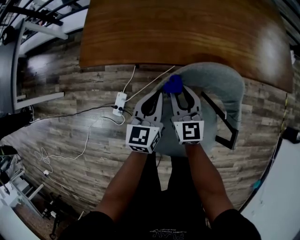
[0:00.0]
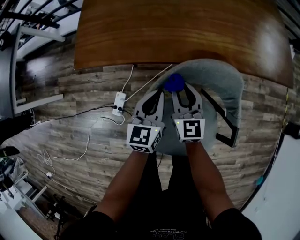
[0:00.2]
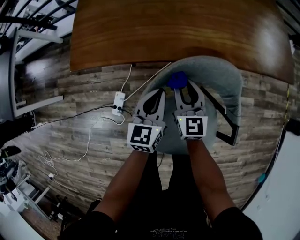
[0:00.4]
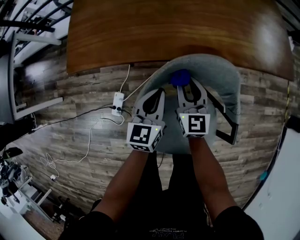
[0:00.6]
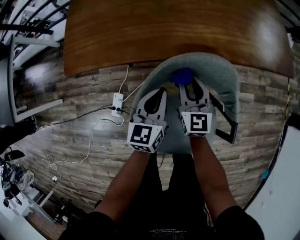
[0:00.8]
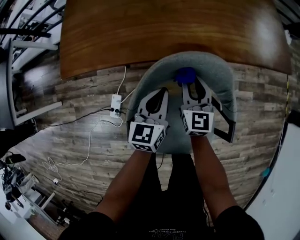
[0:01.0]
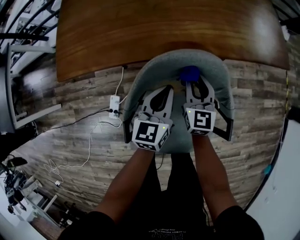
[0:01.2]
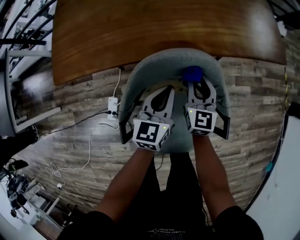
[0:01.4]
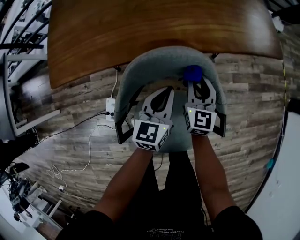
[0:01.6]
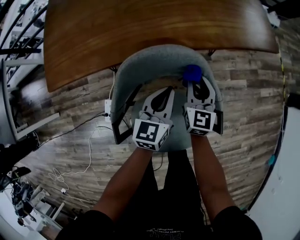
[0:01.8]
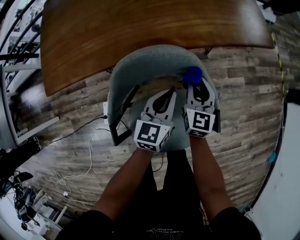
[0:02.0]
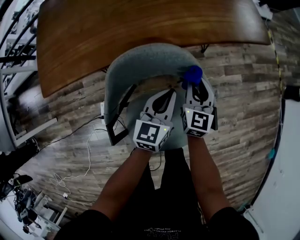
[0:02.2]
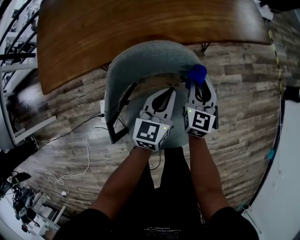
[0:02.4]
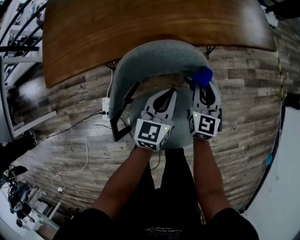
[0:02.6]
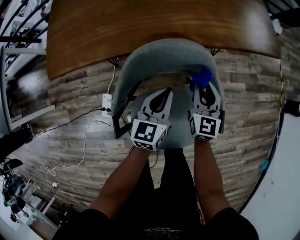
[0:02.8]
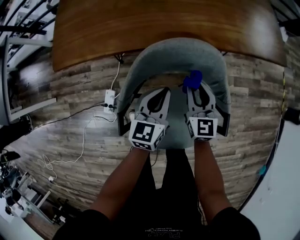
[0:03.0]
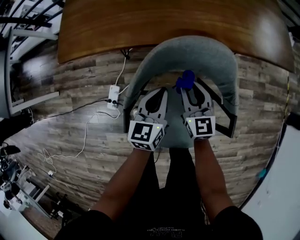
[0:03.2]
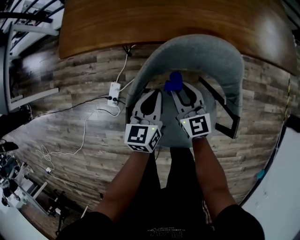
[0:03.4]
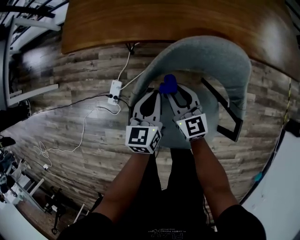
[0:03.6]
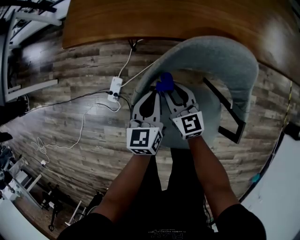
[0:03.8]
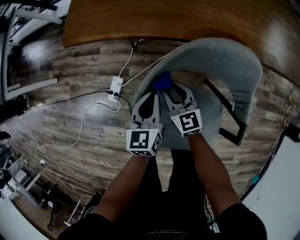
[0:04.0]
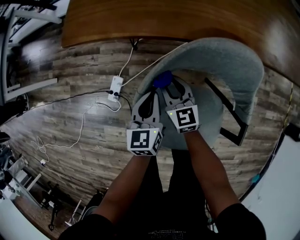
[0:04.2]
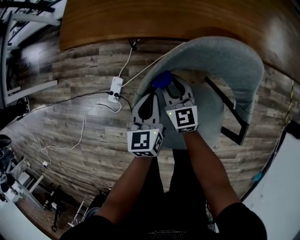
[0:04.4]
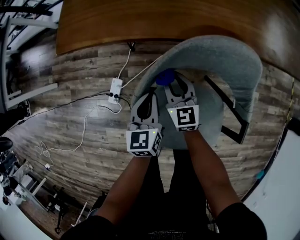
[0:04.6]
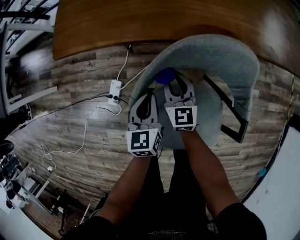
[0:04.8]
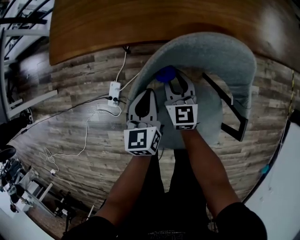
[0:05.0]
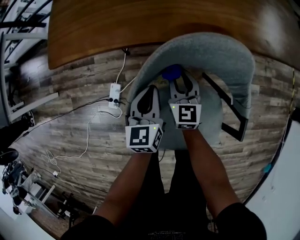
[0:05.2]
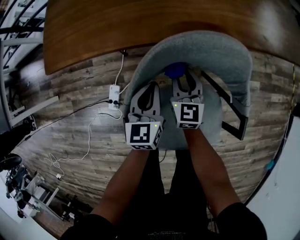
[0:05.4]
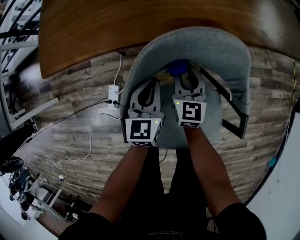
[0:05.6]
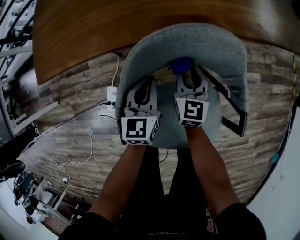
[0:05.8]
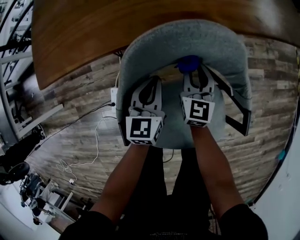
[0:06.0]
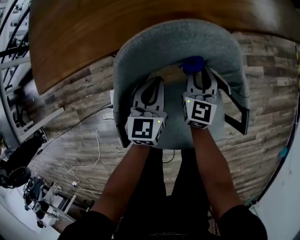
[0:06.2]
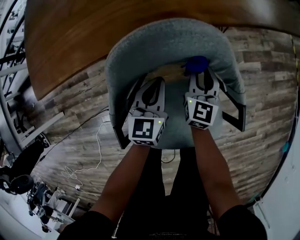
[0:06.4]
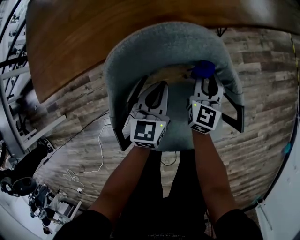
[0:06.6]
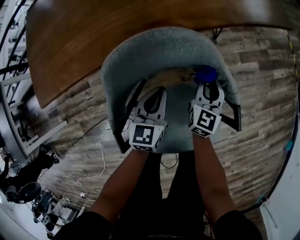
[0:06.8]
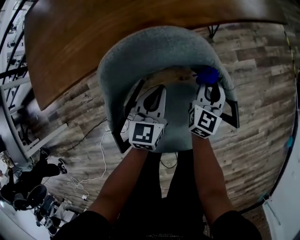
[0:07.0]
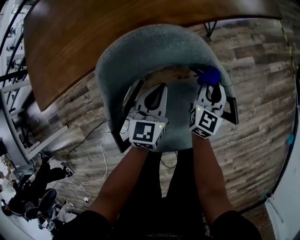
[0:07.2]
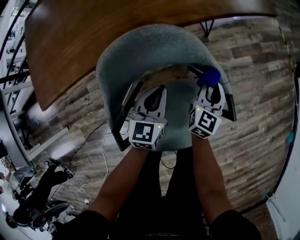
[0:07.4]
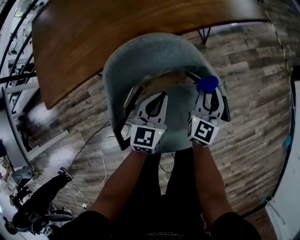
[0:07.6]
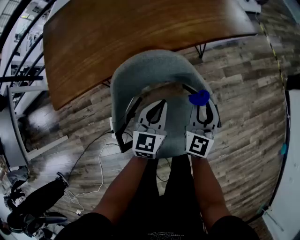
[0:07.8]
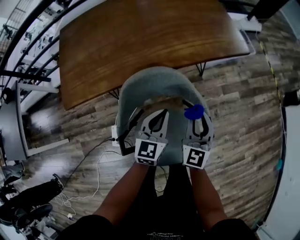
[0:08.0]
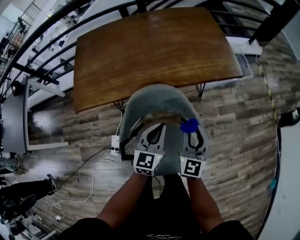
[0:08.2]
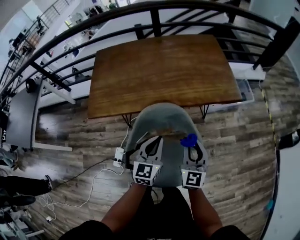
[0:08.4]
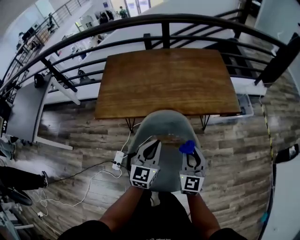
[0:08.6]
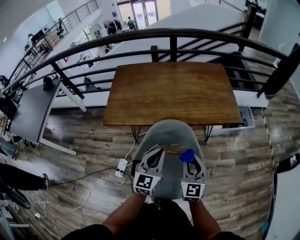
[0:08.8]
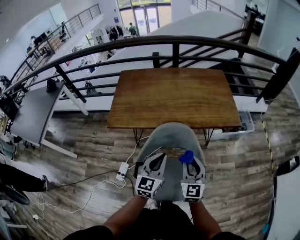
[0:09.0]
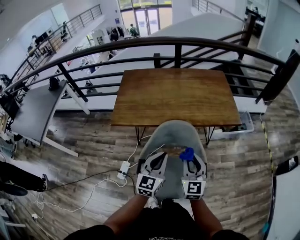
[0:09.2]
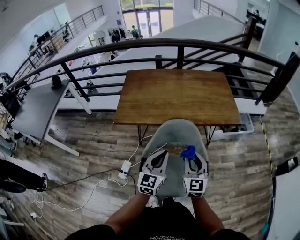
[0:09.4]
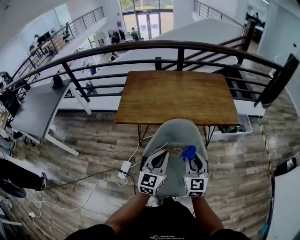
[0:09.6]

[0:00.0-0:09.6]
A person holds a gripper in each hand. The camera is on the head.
0:00.0 to 0:01.6: Both grippers move to the right, about 20 cm. The right gripper changes its angle by roughly 20 degrees.
0:01.6 to 0:03.2: The right gripper moves some 10 cm, and swivels approximately 20 degrees; the left gripper shifts by roughly 10 cm.
0:03.2 to 0:04.8: Both grippers travel together to the left and downward, some 10 cm.
0:04.8 to 0:06.4: The right gripper moves about 20 cm, and swivels some 30 degrees; the left gripper ends up some 15 cm from where it was, and swivels approximately 30 degrees.
0:06.4 to 0:08.0: Both grippers move upward and to the right, roughly 20 cm.
0:08.0 to 0:09.6: The left gripper goes some 30 cm upward and backward, and turns by some 20 degrees, while the right gripper heads upward, backward and to the left, covering approximately 25 cm, and rotates roughly 30 degrees.

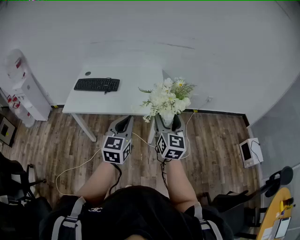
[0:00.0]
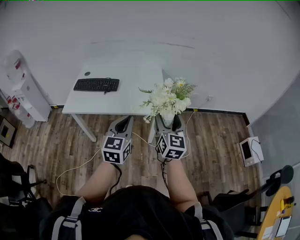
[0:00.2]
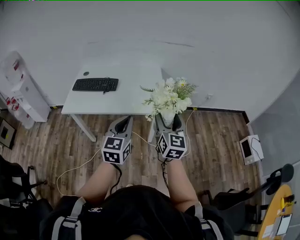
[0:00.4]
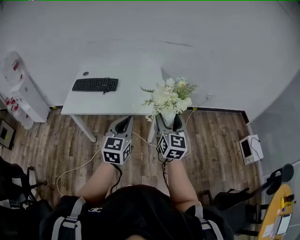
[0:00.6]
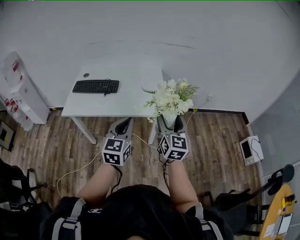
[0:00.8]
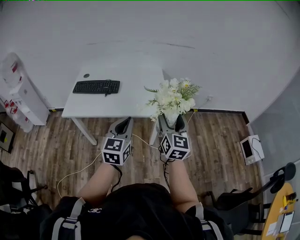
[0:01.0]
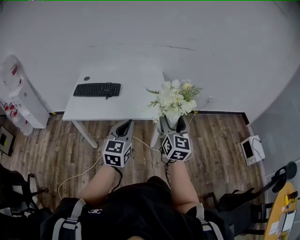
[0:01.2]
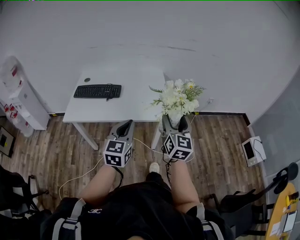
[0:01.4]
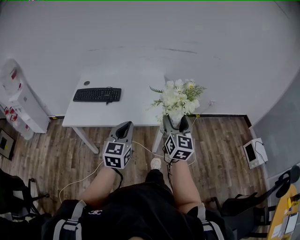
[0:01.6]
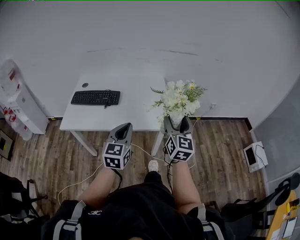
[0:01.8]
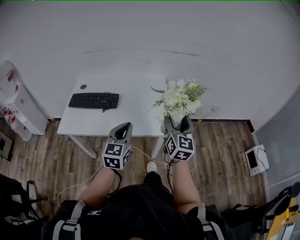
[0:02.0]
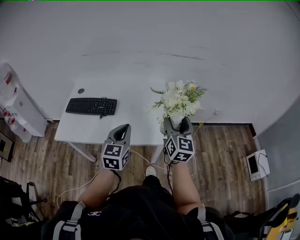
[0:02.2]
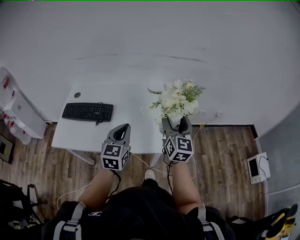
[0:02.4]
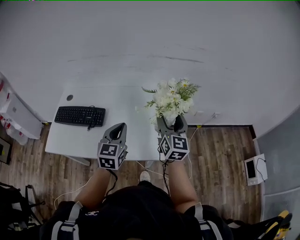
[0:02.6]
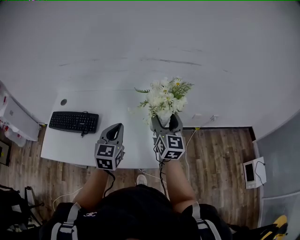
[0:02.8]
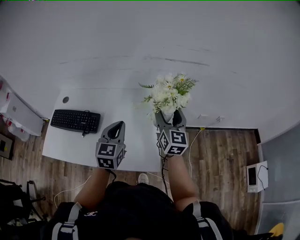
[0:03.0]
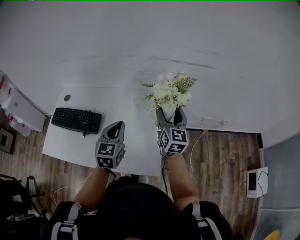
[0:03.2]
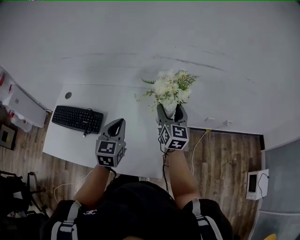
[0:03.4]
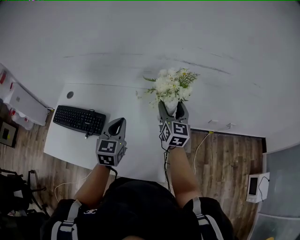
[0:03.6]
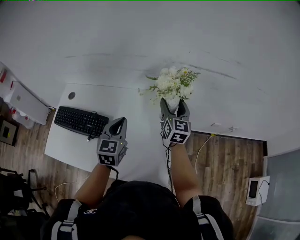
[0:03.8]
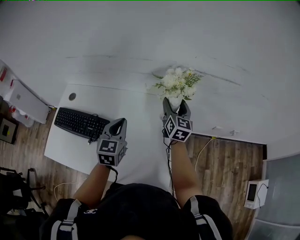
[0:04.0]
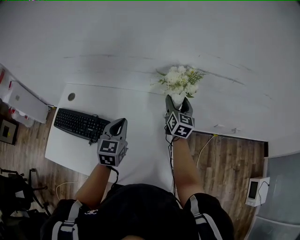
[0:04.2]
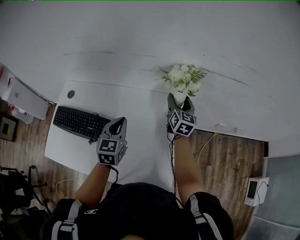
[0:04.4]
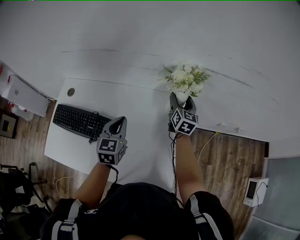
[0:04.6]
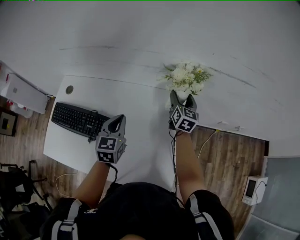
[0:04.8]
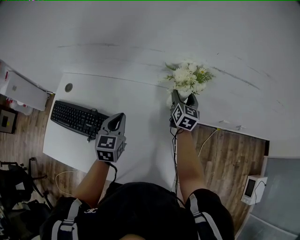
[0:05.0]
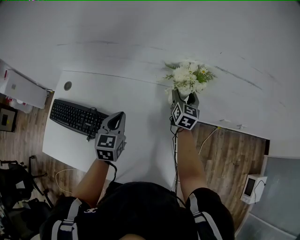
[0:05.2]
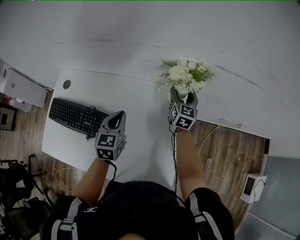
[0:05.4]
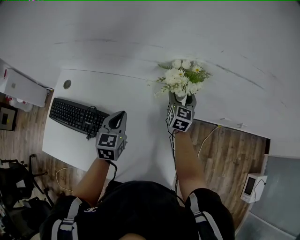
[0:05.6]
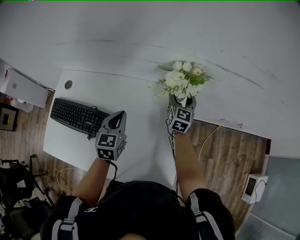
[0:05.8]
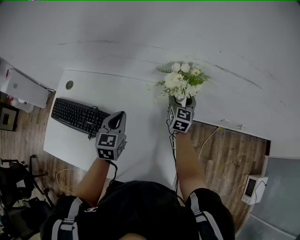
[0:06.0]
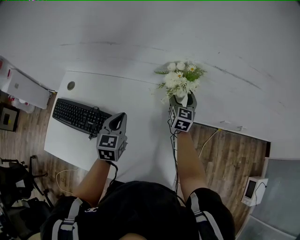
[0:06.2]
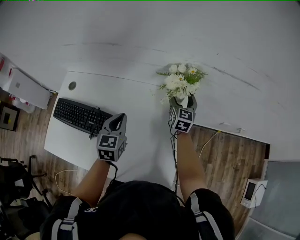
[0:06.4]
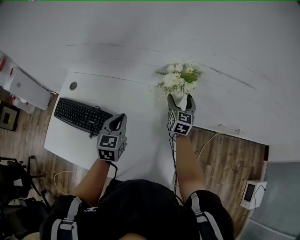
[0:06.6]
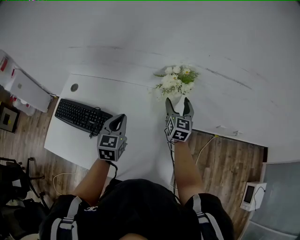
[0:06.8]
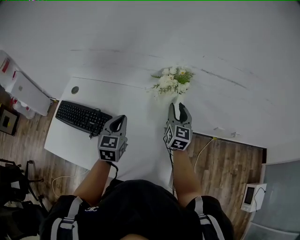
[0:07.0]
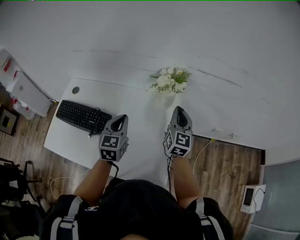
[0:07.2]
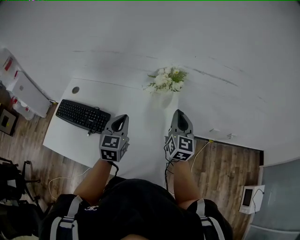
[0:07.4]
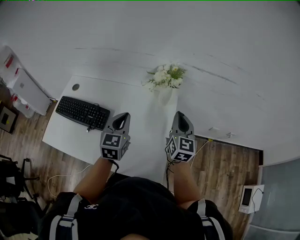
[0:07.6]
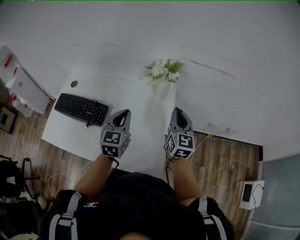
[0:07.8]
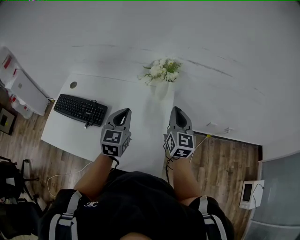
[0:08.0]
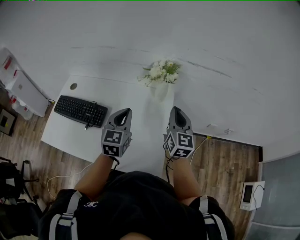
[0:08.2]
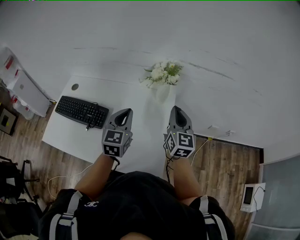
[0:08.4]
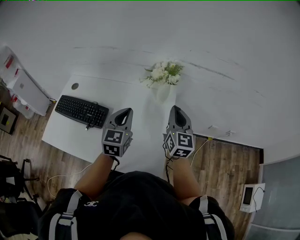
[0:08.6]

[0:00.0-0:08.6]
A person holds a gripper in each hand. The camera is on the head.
0:00.0 to 0:01.4: The left gripper is displaced to the left by approximately 5 cm.
0:01.4 to 0:02.8: Both grippers are carried forward, roughly 40 cm.
0:02.8 to 0:04.4: The left gripper heads forward and to the left, covering approximately 25 cm. Meanwhile the right gripper heads forward and downward, covering about 35 cm.
0:04.4 to 0:05.8: The two grippers go roughly 5 cm downward.
0:05.8 to 0:07.2: The right gripper heads backward and upward, covering about 20 cm, and closes its fingers, while the left gripper goes roughly 10 cm backward and upward.
0:07.2 to 0:08.6: The right gripper is displaced backward by some 5 cm, while the left gripper heads to the right, covering some 5 cm.

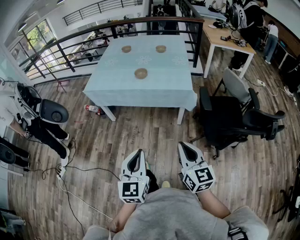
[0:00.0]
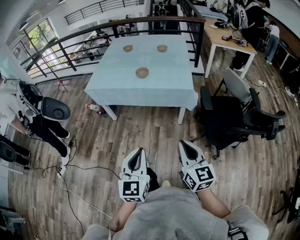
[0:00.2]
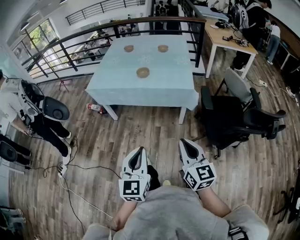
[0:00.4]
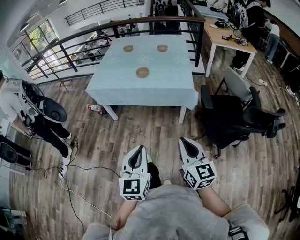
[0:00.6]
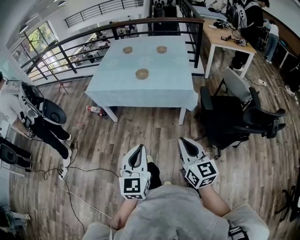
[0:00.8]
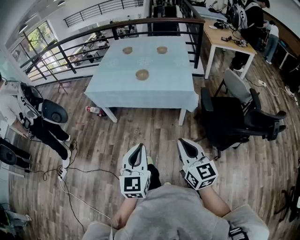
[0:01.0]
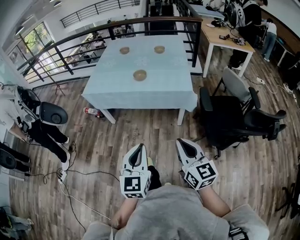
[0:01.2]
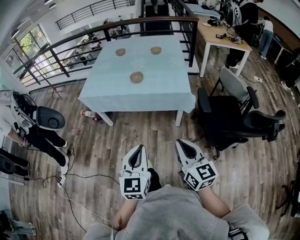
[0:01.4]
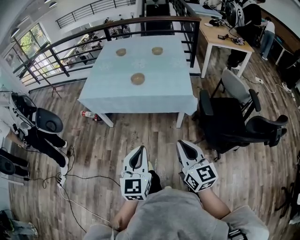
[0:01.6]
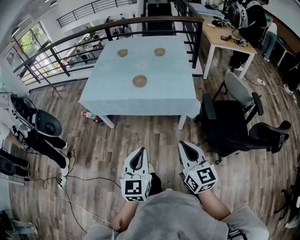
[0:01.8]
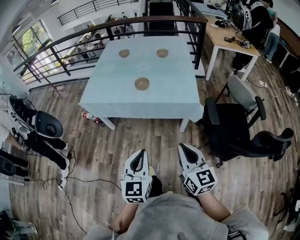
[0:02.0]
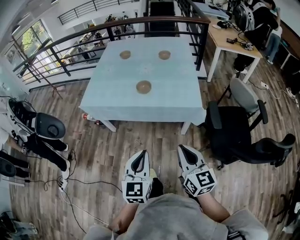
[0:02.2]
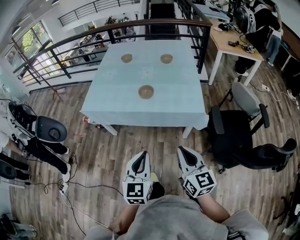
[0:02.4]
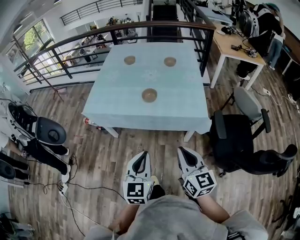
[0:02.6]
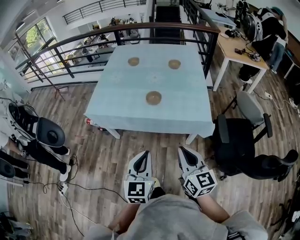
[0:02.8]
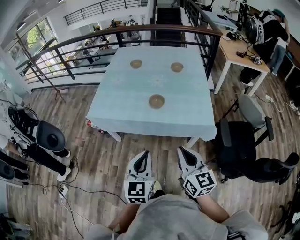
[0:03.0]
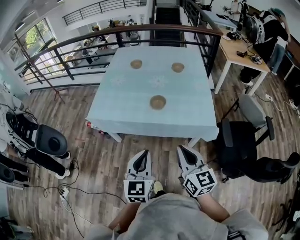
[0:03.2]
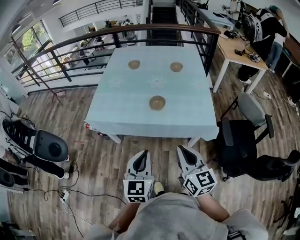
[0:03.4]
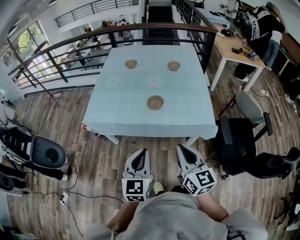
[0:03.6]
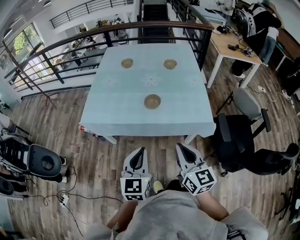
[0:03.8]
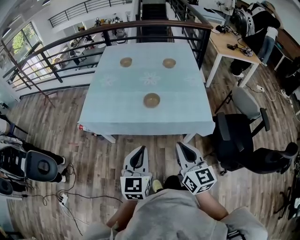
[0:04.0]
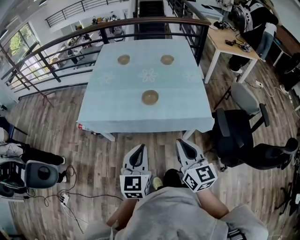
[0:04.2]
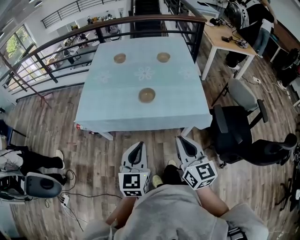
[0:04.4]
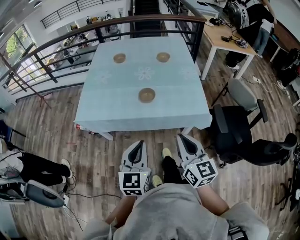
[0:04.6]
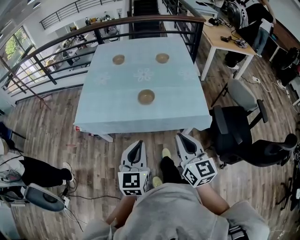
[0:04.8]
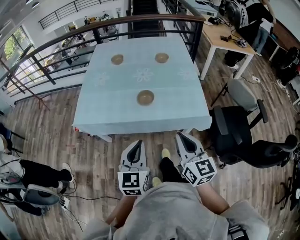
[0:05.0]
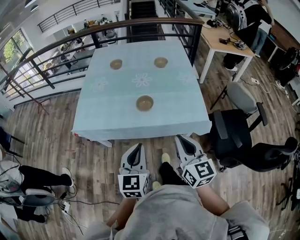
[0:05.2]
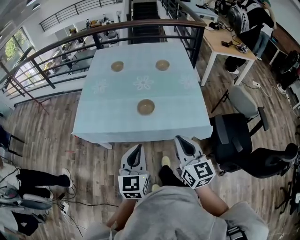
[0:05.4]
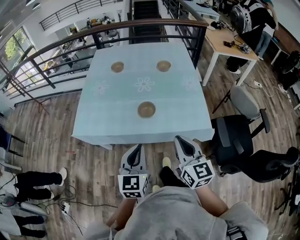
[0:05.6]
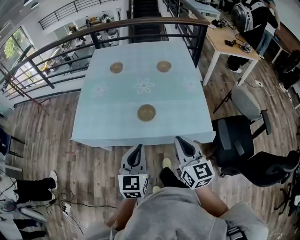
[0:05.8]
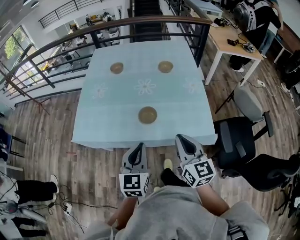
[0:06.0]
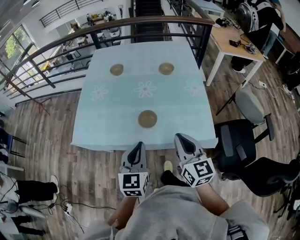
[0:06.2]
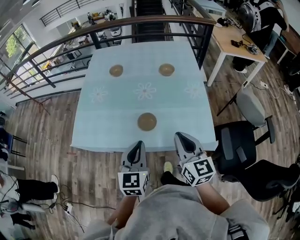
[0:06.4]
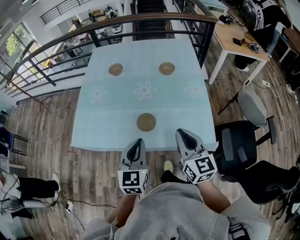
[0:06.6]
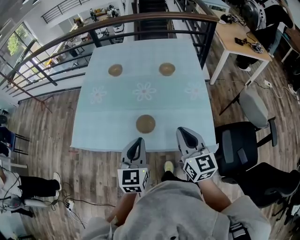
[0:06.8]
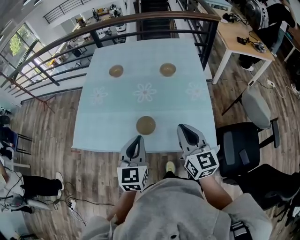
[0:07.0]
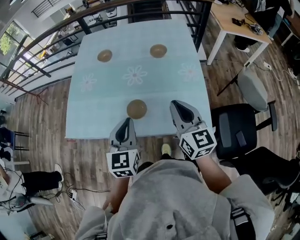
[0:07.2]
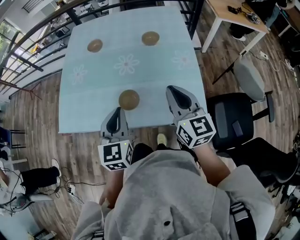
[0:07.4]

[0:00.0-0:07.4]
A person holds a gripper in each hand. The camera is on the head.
0:00.0 to 0:01.4: The left gripper is displaced forward by some 5 cm.
0:01.4 to 0:03.0: The two grippers go some 25 cm forward.
0:03.0 to 0:04.4: The left gripper shifts by some 5 cm.
0:04.4 to 0:06.0: Both grippers move forward, approximately 15 cm.
0:06.0 to 0:07.4: The left gripper goes approximately 15 cm forward; the right gripper moves forward and to the right, about 15 cm.
